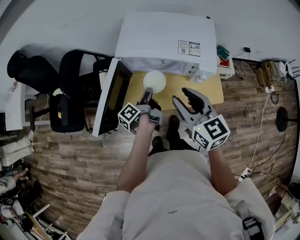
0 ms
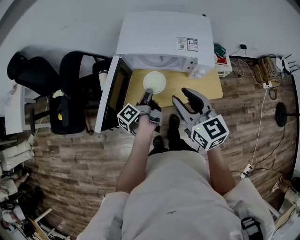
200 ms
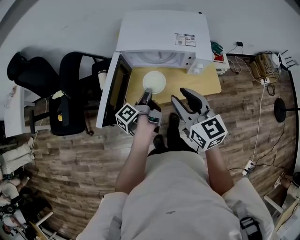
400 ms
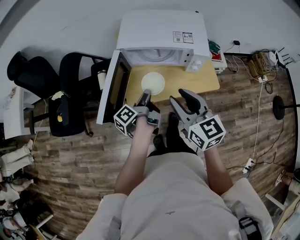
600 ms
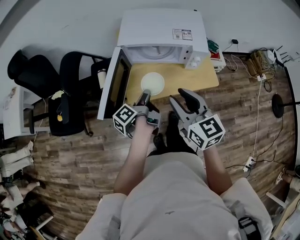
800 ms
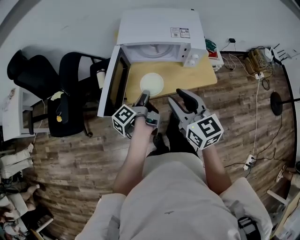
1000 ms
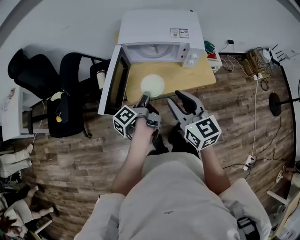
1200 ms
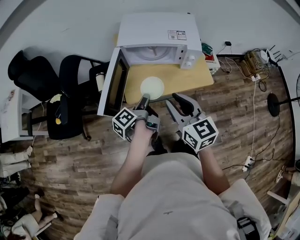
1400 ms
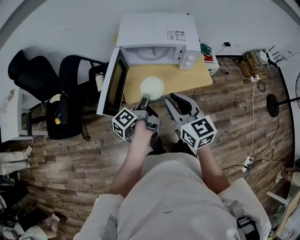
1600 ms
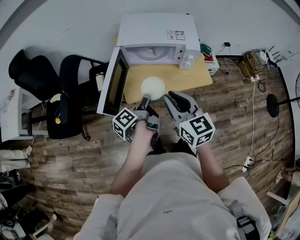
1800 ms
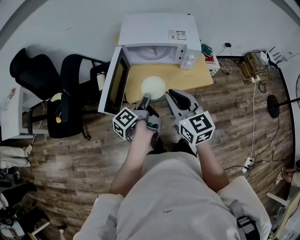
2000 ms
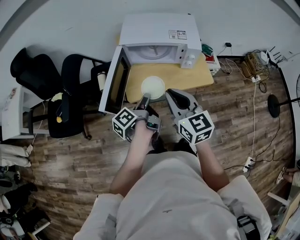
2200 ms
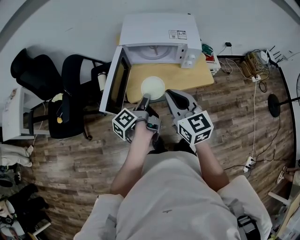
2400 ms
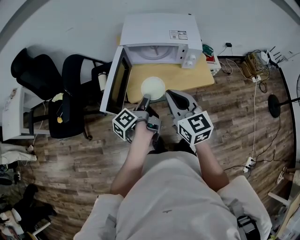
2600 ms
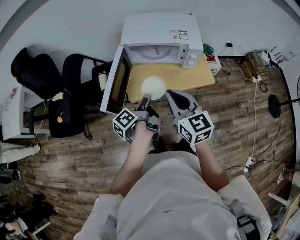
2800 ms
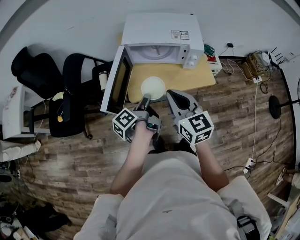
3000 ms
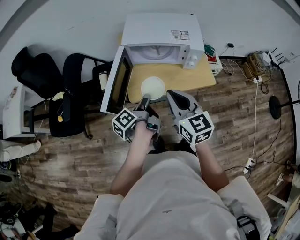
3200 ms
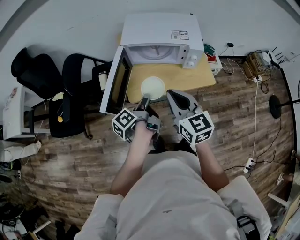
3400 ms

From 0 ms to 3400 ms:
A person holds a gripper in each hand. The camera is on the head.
From 0 ms to 1600 ms: The right gripper moves backward and to the left, some 15 cm. The left gripper shifts some 20 cm backward and upward.
From 1600 ms to 3400 ms: There are only small adjustments of the grippers.

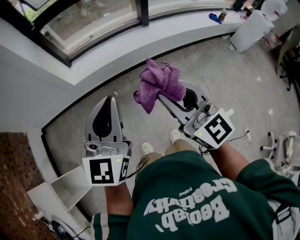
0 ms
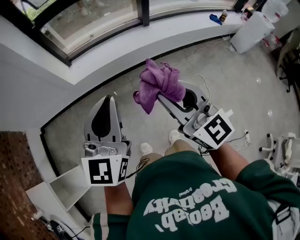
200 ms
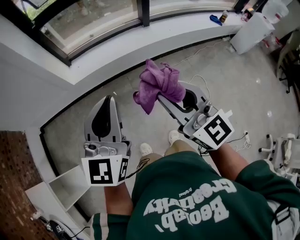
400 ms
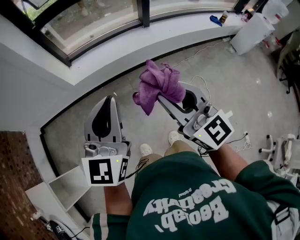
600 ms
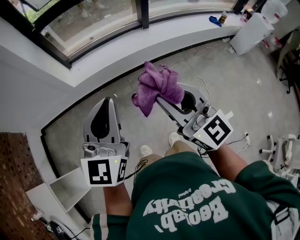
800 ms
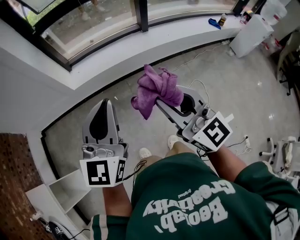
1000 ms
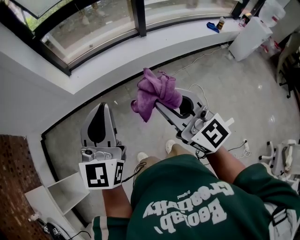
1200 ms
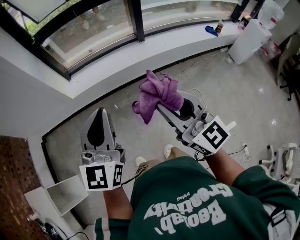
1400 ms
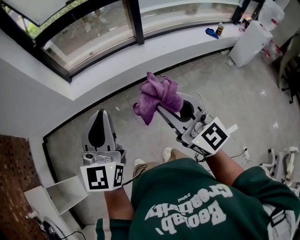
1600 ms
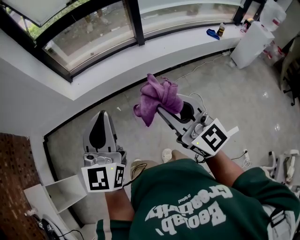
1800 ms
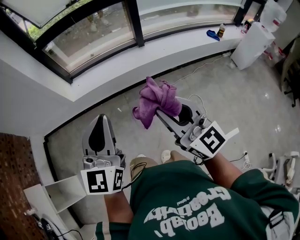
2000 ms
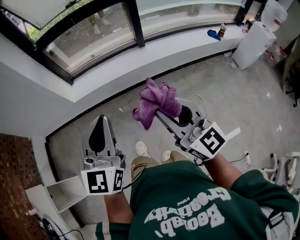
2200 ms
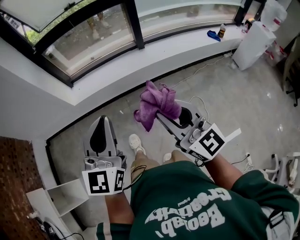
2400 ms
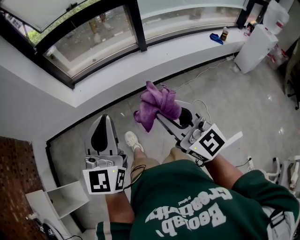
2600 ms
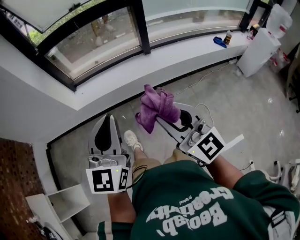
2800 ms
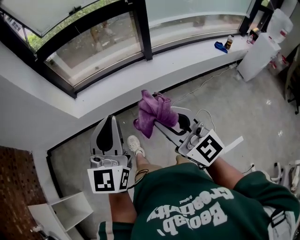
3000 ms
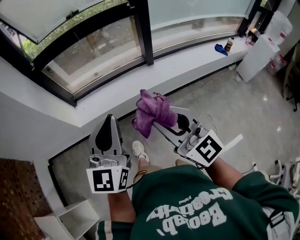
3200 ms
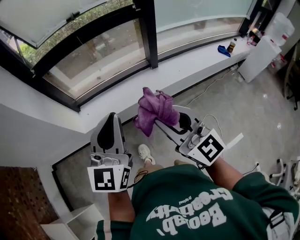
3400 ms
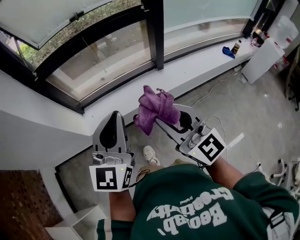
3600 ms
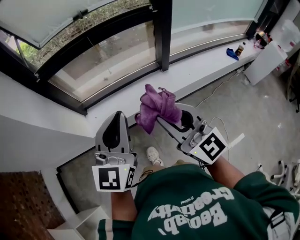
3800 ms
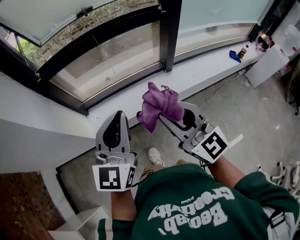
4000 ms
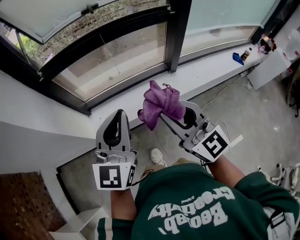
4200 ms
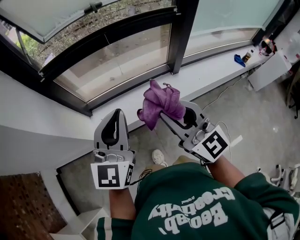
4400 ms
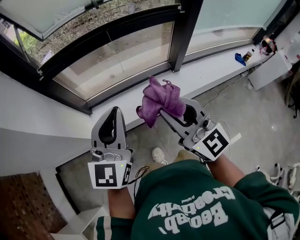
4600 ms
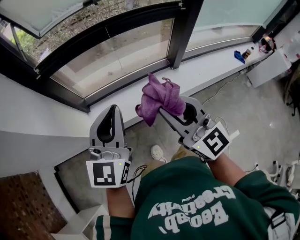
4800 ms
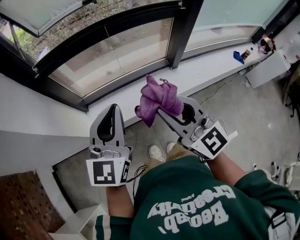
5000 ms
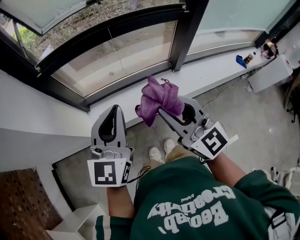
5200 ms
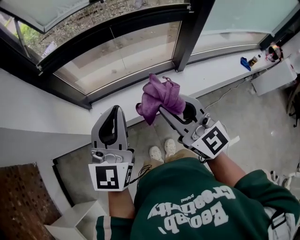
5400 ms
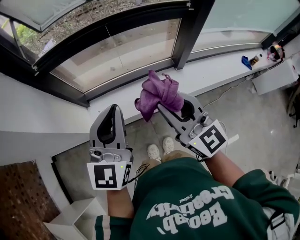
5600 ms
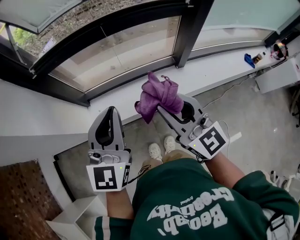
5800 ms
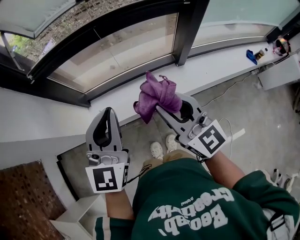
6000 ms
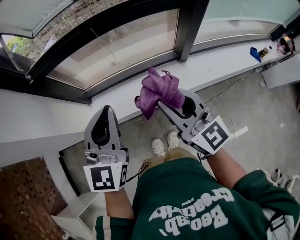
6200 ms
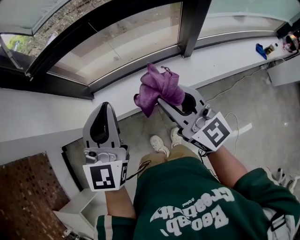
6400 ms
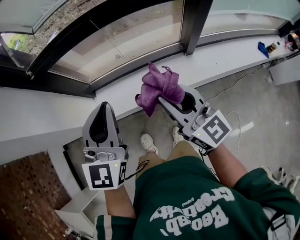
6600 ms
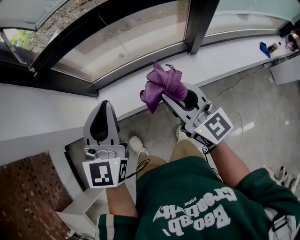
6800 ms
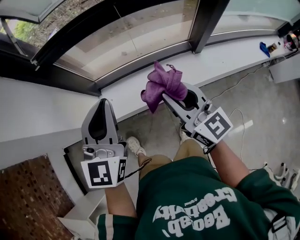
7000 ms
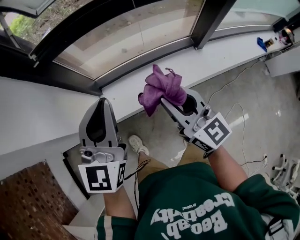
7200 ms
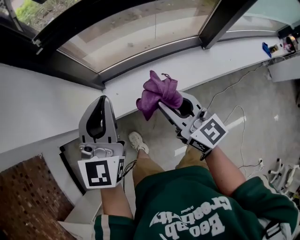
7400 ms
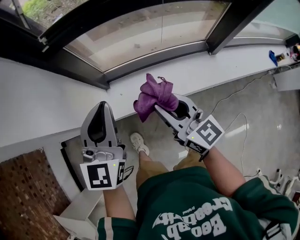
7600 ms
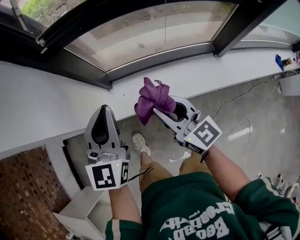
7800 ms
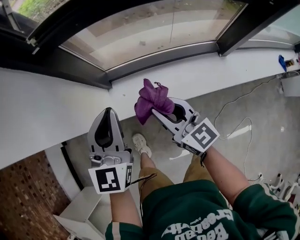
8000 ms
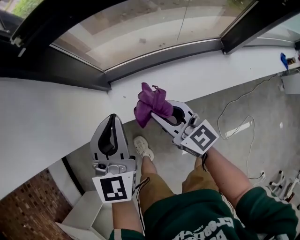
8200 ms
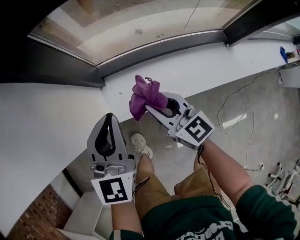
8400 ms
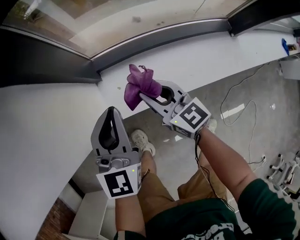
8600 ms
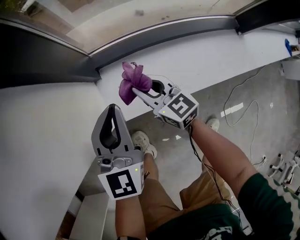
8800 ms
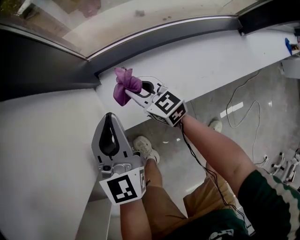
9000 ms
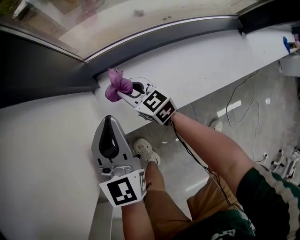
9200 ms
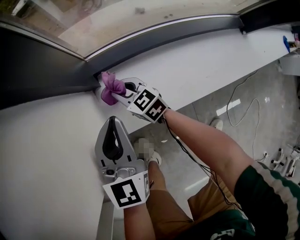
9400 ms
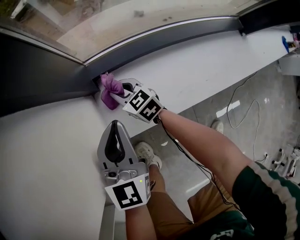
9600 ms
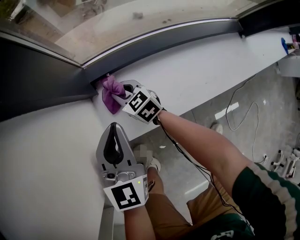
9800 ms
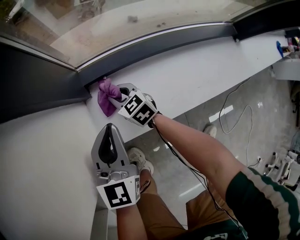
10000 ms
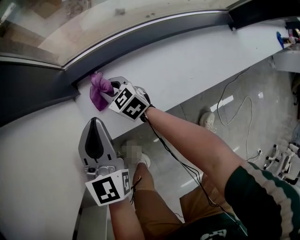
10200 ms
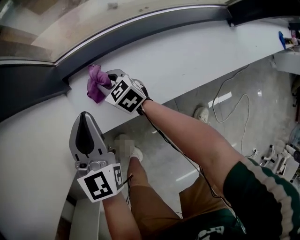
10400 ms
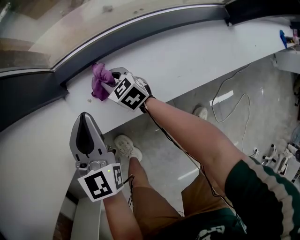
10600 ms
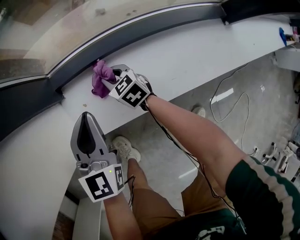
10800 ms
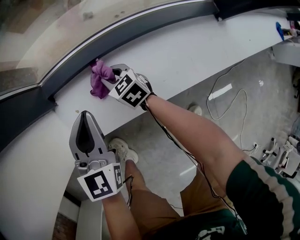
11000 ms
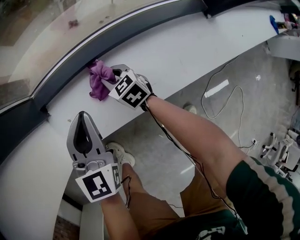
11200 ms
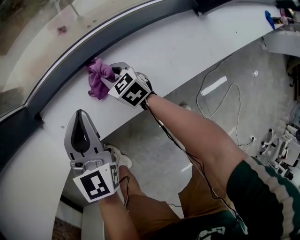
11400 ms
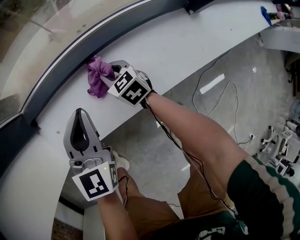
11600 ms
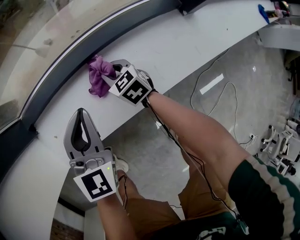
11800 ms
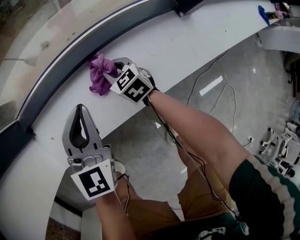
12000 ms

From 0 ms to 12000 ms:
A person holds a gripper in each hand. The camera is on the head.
From 0 ms to 1600 ms: Both grippers travel together to the right, some 10 cm.
From 1600 ms to 3000 ms: The grippers both shift forward by roughly 10 cm.
From 3000 ms to 4400 ms: The two grippers go roughly 40 cm forward and to the left.
From 4400 ms to 6000 ms: The right gripper goes roughly 10 cm forward and to the right. The left gripper is displaced forward by some 5 cm.
From 6000 ms to 7600 ms: The right gripper travels to the left and downward by some 25 cm; the left gripper travels to the left by roughly 20 cm.
From 7600 ms to 9000 ms: The right gripper moves downward and forward, some 50 cm, and rotates approximately 20 degrees. Meanwhile the left gripper moves downward, approximately 35 cm.
From 9000 ms to 10400 ms: The right gripper moves downward, approximately 10 cm. Meanwhile the left gripper heads downward, covering approximately 5 cm.
From 10400 ms to 12000 ms: Both grippers travel together to the right, about 30 cm.

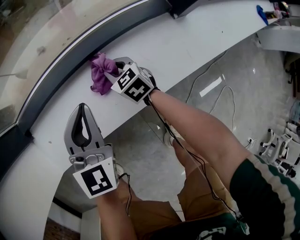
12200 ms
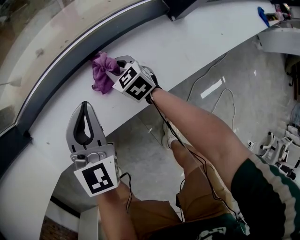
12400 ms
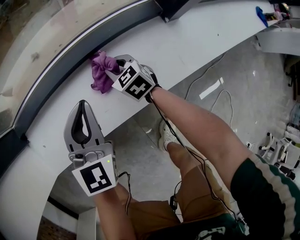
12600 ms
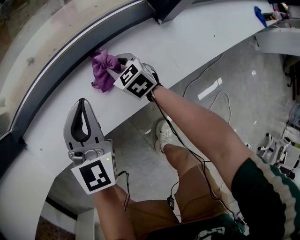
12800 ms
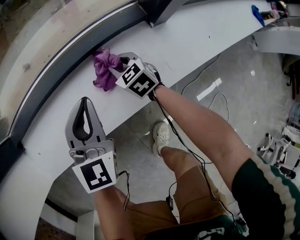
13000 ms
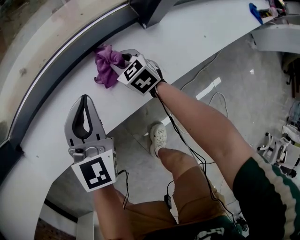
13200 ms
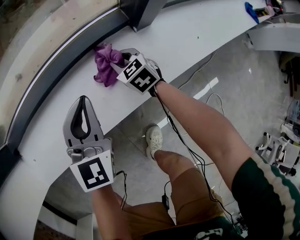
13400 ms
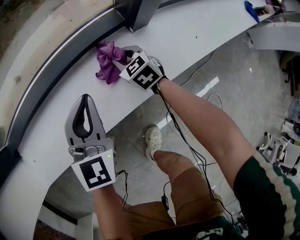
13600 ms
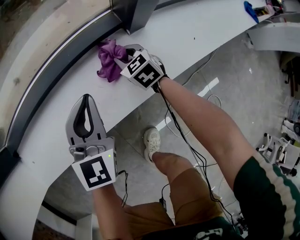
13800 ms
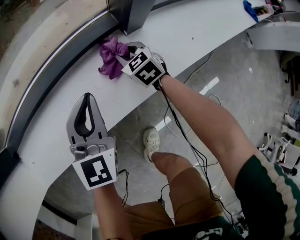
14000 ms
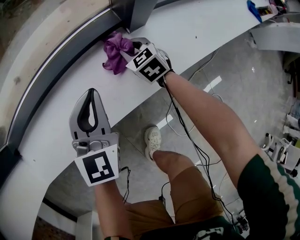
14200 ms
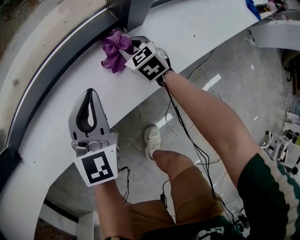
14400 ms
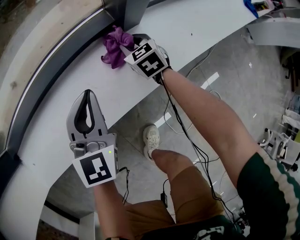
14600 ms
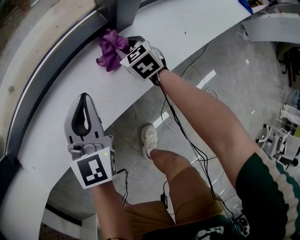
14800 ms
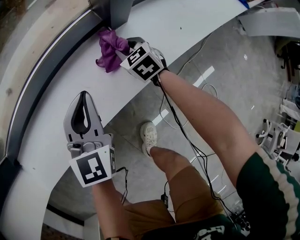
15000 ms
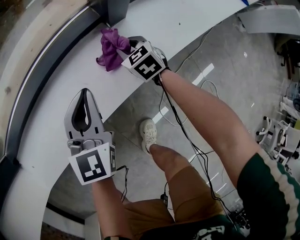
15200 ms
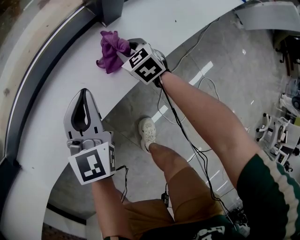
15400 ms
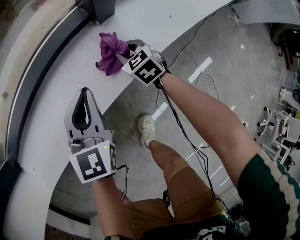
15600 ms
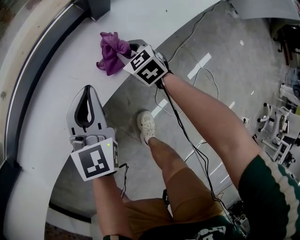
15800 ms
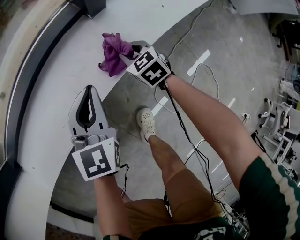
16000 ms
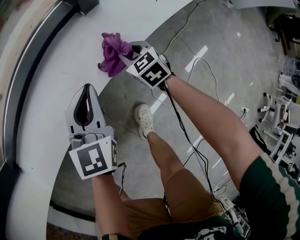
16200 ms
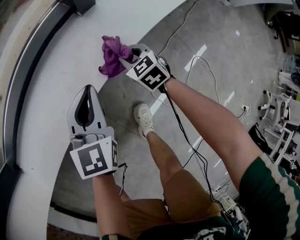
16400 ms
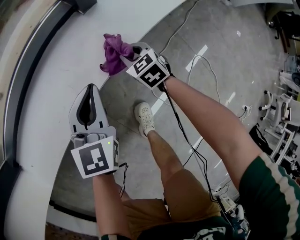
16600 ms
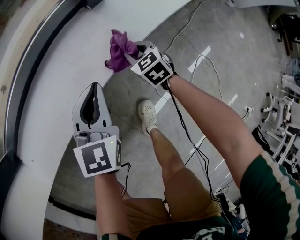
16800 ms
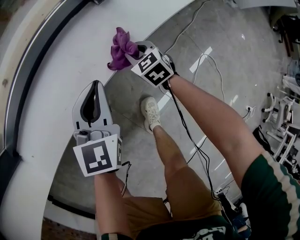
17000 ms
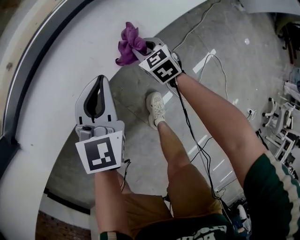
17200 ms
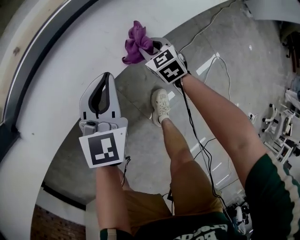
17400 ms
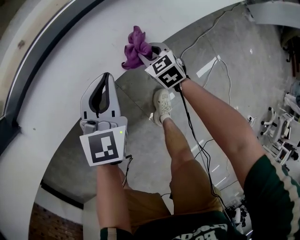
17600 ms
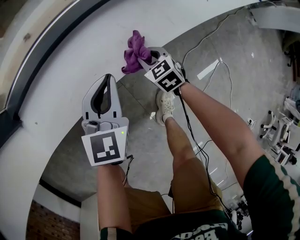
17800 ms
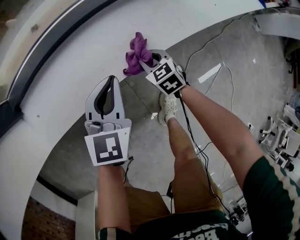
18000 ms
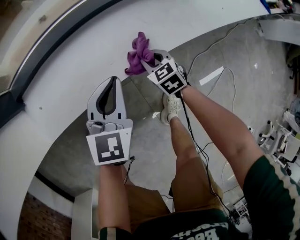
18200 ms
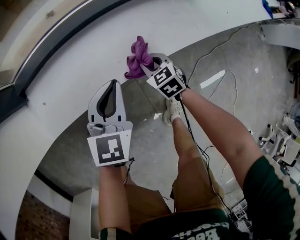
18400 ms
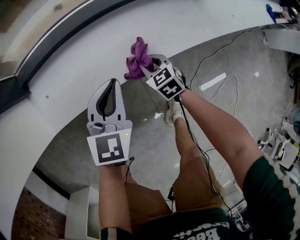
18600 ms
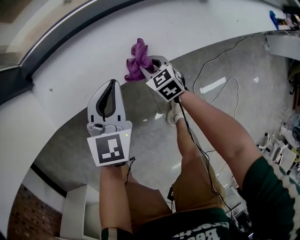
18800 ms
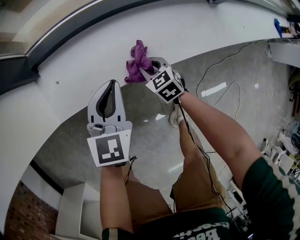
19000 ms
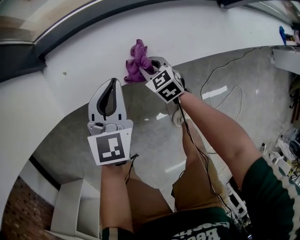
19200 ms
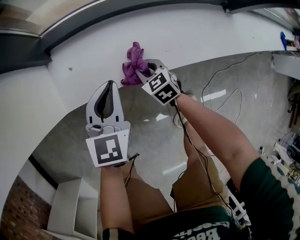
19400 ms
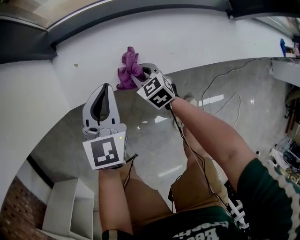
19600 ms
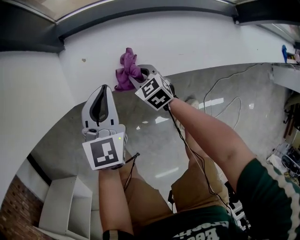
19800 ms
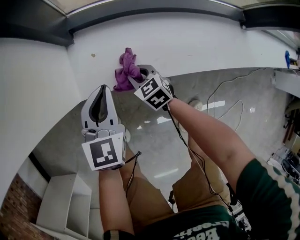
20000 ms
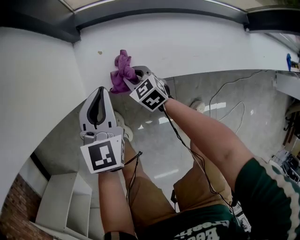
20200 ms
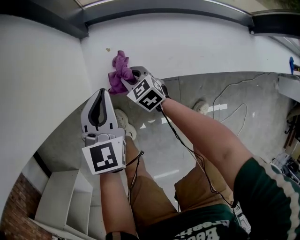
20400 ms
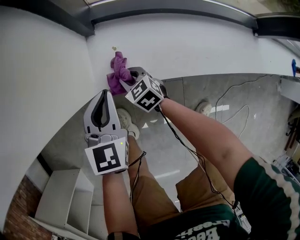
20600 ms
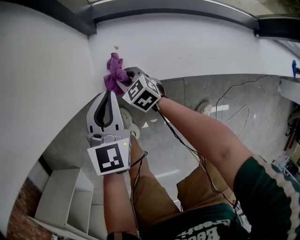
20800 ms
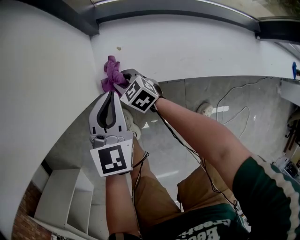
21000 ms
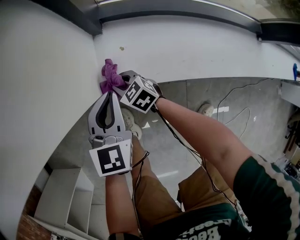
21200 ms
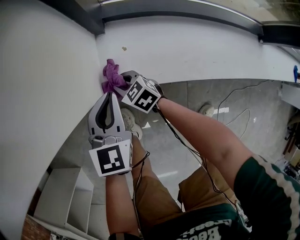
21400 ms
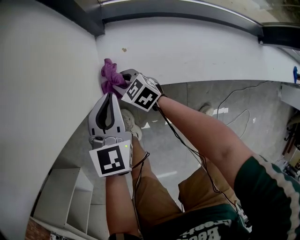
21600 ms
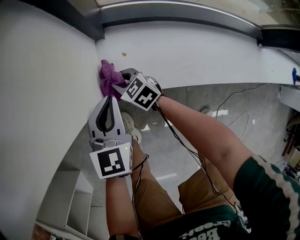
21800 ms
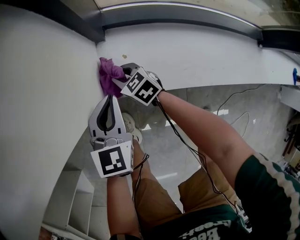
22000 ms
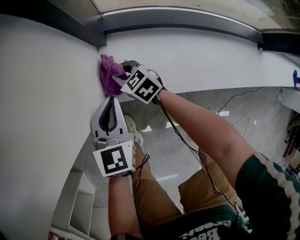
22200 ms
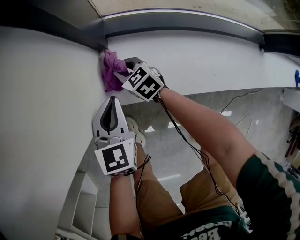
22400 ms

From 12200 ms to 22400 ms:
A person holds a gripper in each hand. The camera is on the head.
From 12200 ms to 13600 ms: The grippers both shift to the right by some 25 cm.
From 13600 ms to 15200 ms: The right gripper is displaced to the right by some 5 cm.
From 15200 ms to 16600 ms: The left gripper moves backward, some 10 cm, while the right gripper goes about 15 cm backward.
From 16600 ms to 18000 ms: Both grippers travel together to the left, about 20 cm.
From 18000 ms to 19400 ms: Both grippers travel together to the left, some 25 cm.
From 19400 ms to 21000 ms: The left gripper goes approximately 20 cm to the left, while the right gripper heads to the left, covering approximately 30 cm, and changes its angle by some 20 degrees.
From 21000 ms to 22400 ms: The left gripper travels forward by about 5 cm. The right gripper goes about 10 cm forward.
